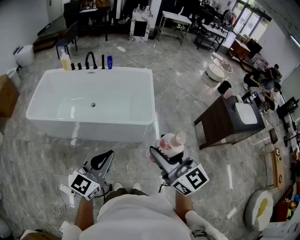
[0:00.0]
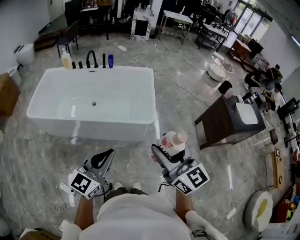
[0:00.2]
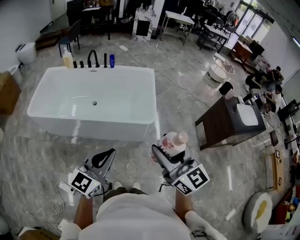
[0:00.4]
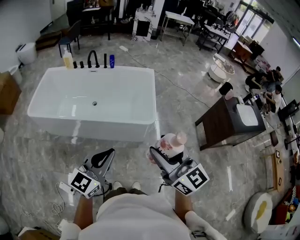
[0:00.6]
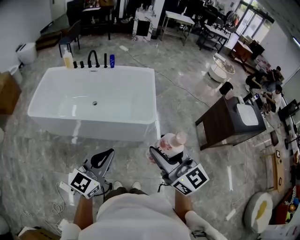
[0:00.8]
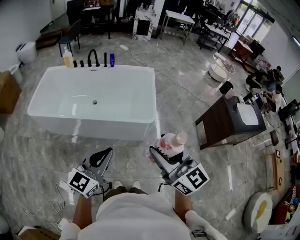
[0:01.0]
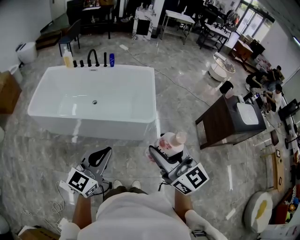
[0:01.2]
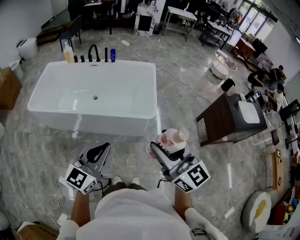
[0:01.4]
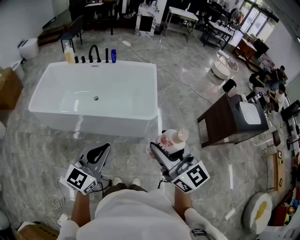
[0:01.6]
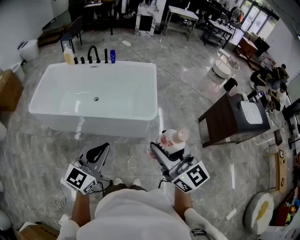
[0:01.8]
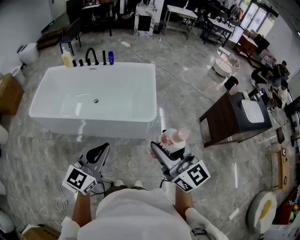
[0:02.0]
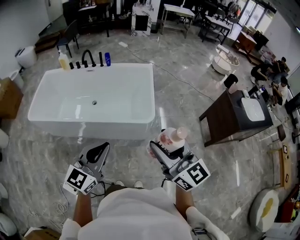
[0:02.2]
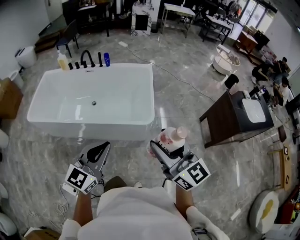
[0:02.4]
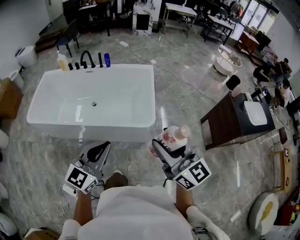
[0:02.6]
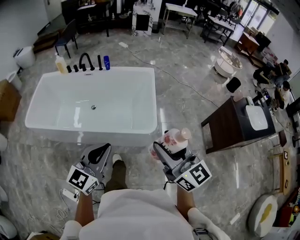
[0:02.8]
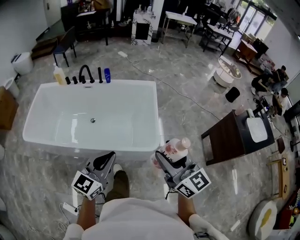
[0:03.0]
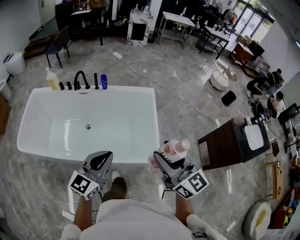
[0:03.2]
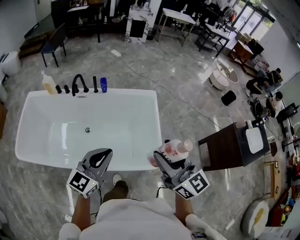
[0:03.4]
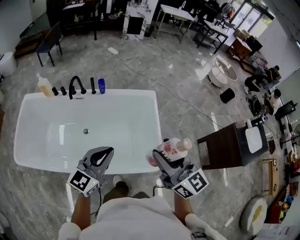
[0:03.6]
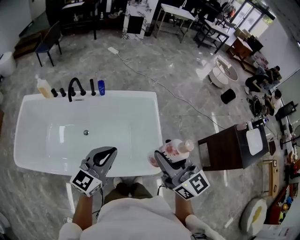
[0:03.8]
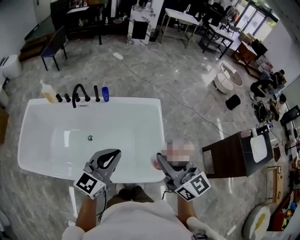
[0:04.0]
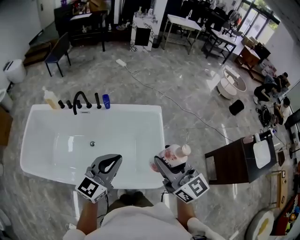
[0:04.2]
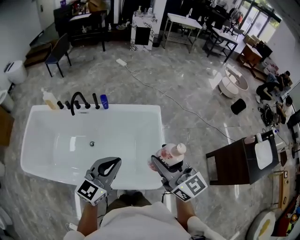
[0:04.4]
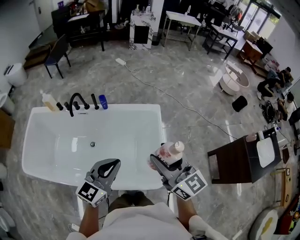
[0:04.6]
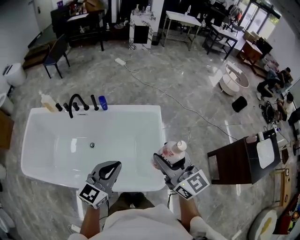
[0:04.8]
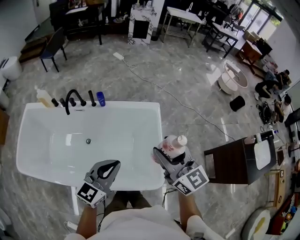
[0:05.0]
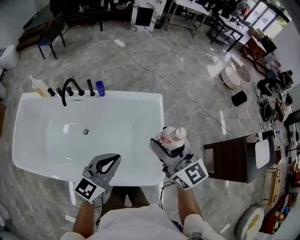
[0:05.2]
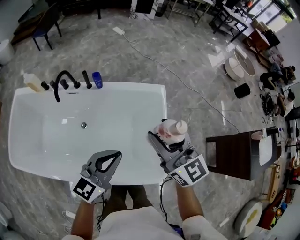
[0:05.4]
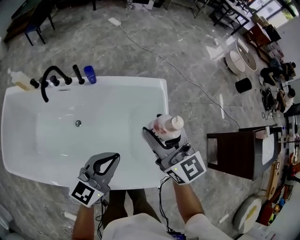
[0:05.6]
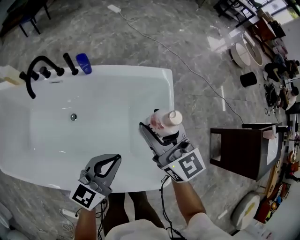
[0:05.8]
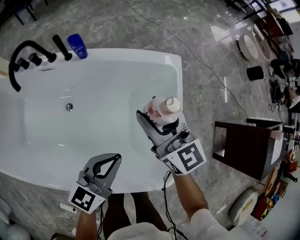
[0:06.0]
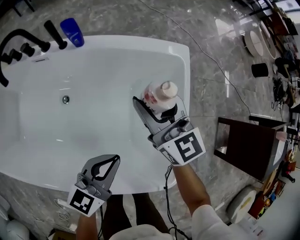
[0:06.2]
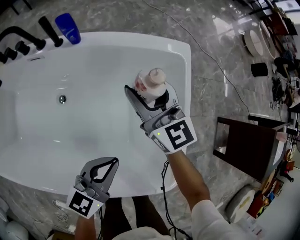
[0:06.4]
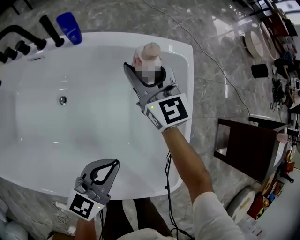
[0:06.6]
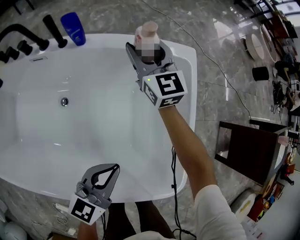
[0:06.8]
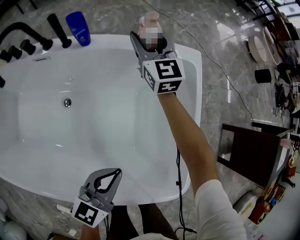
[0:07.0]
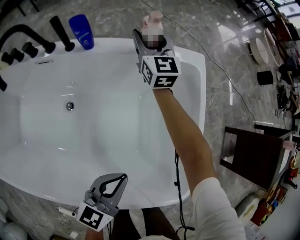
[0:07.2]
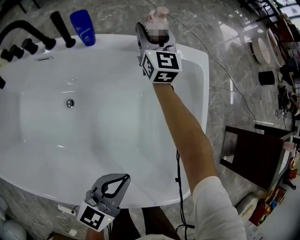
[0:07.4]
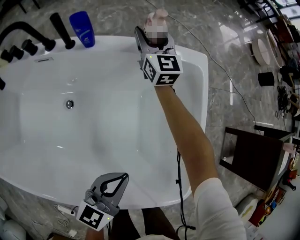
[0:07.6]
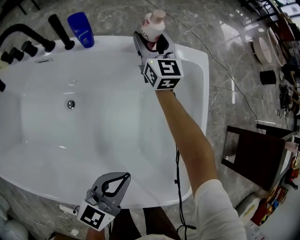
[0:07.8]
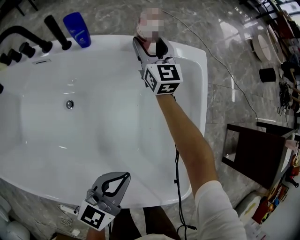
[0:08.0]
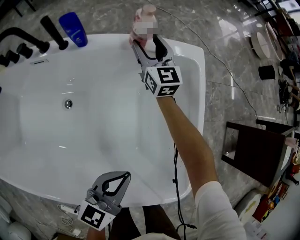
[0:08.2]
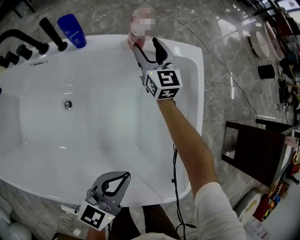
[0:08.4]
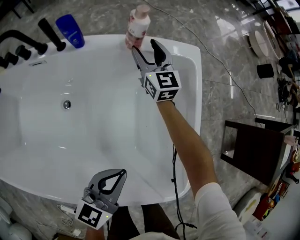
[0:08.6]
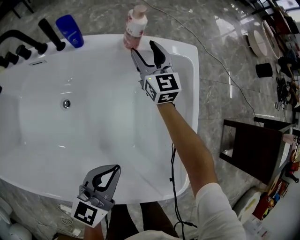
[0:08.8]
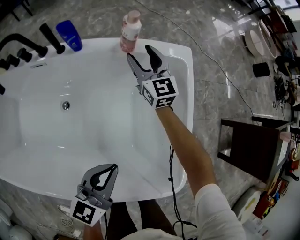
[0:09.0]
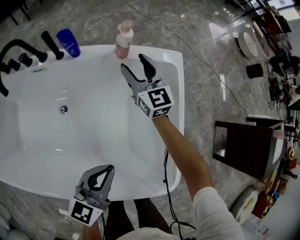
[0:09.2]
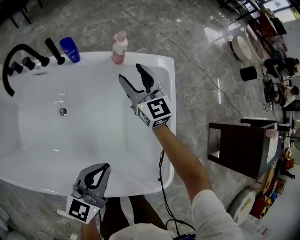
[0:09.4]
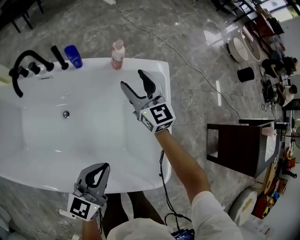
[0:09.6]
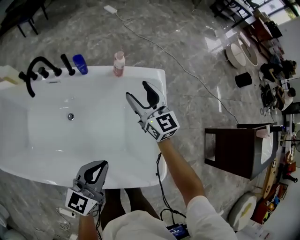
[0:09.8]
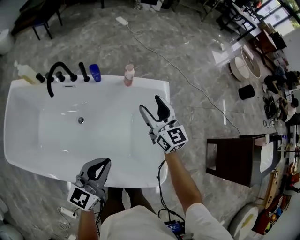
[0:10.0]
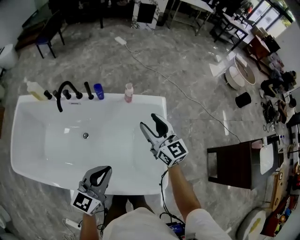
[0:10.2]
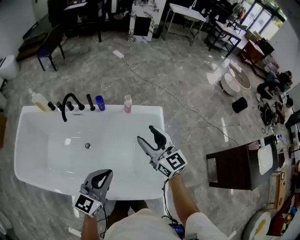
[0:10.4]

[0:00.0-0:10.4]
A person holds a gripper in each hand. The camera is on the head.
0:00.0 to 0:01.4: Both grippers stay put.
0:01.4 to 0:03.0: Both grippers move forward, about 25 cm.
0:03.0 to 0:04.4: The grippers both shift forward by about 30 cm.
0:04.4 to 0:06.0: The grippers both shift downward and forward by some 40 cm.
0:06.0 to 0:07.4: The right gripper is displaced forward and downward by some 30 cm. Meanwhile the left gripper is displaced downward by approximately 10 cm.
0:07.4 to 0:09.0: The right gripper is displaced backward and to the right by about 10 cm.
0:09.0 to 0:10.4: The right gripper shifts roughly 50 cm upward and backward. Meanwhile the left gripper heads upward, covering some 30 cm.

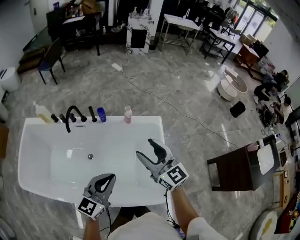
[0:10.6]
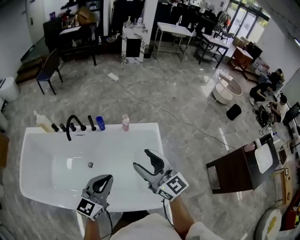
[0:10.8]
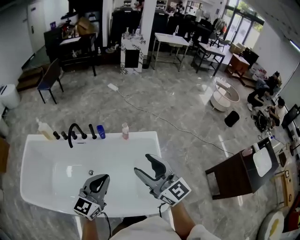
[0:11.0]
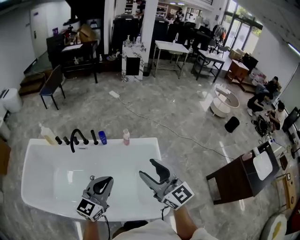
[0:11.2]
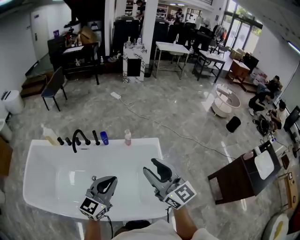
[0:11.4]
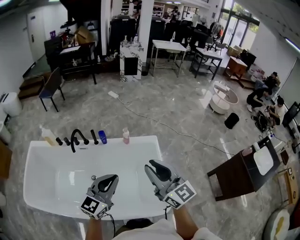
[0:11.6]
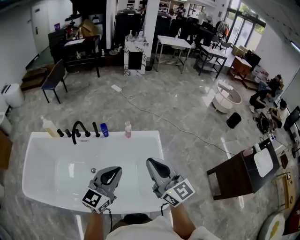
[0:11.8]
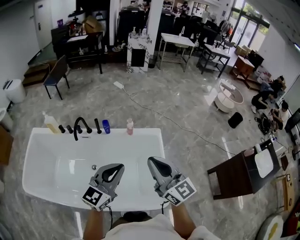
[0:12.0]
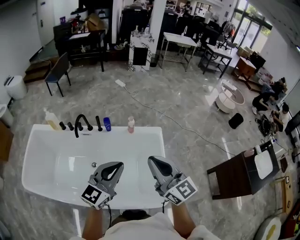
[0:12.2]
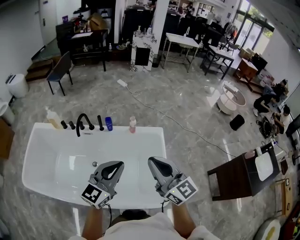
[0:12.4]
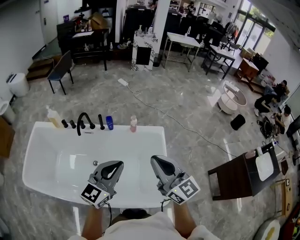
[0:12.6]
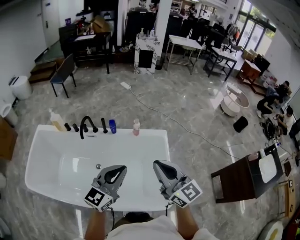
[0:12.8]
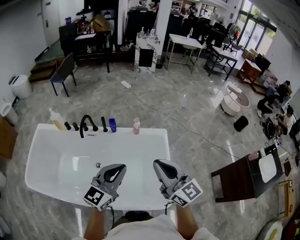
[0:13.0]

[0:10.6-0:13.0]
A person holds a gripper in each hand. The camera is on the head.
0:10.6 to 0:11.8: The left gripper travels upward by about 10 cm. Meanwhile the right gripper is displaced upward and backward by approximately 15 cm, and closes up.
0:11.8 to 0:13.0: There are only small adjustments of the grippers.

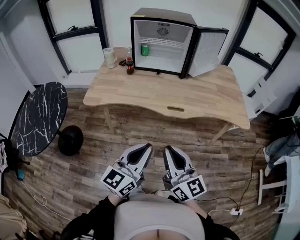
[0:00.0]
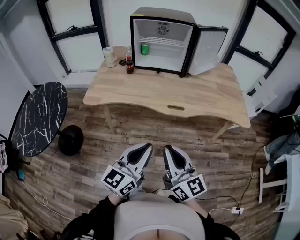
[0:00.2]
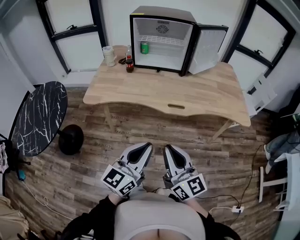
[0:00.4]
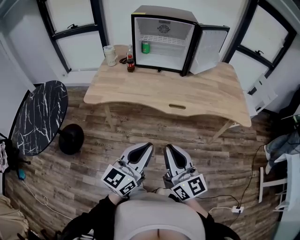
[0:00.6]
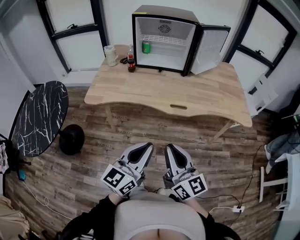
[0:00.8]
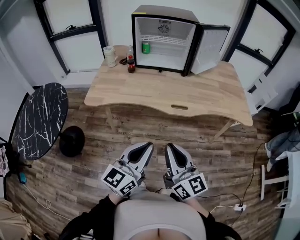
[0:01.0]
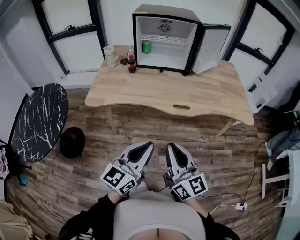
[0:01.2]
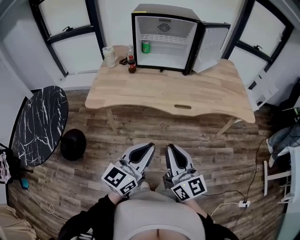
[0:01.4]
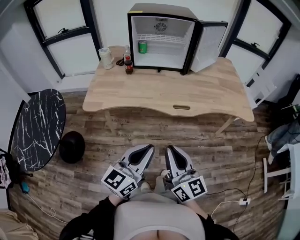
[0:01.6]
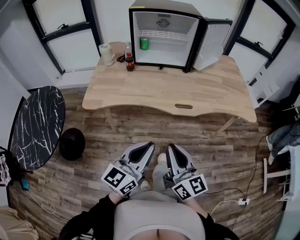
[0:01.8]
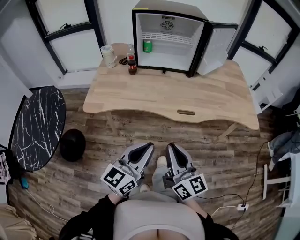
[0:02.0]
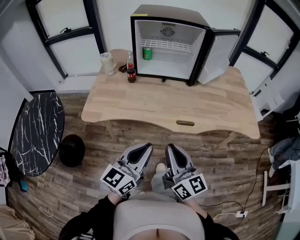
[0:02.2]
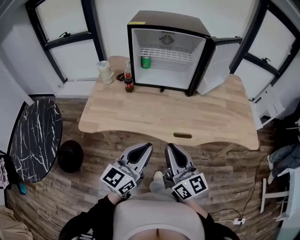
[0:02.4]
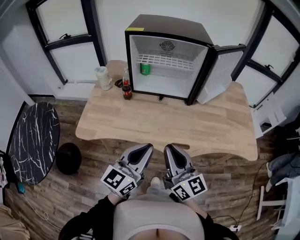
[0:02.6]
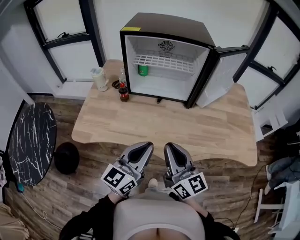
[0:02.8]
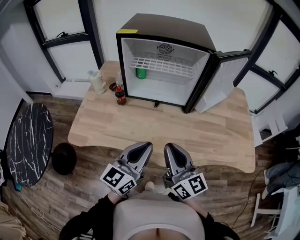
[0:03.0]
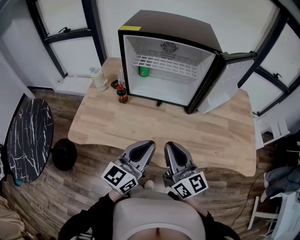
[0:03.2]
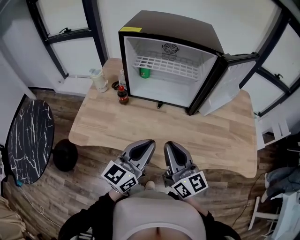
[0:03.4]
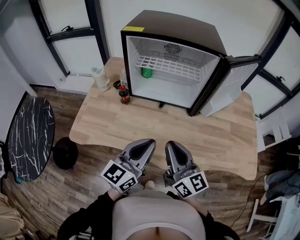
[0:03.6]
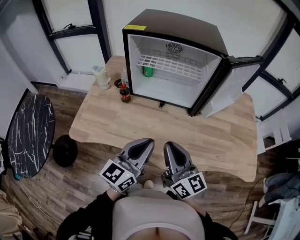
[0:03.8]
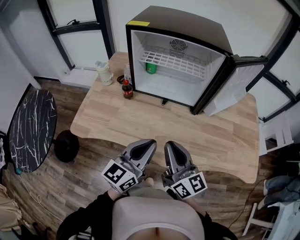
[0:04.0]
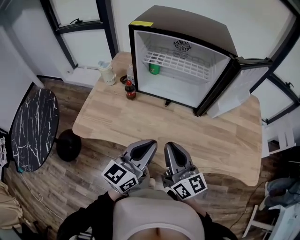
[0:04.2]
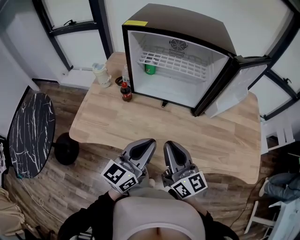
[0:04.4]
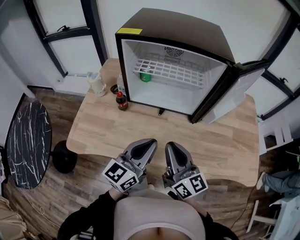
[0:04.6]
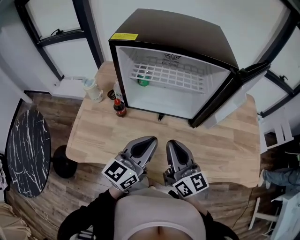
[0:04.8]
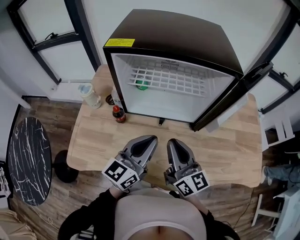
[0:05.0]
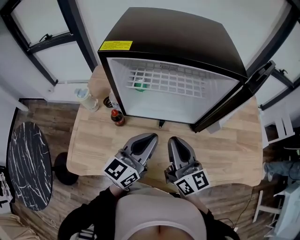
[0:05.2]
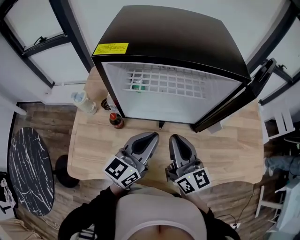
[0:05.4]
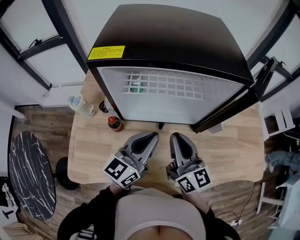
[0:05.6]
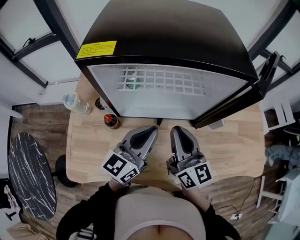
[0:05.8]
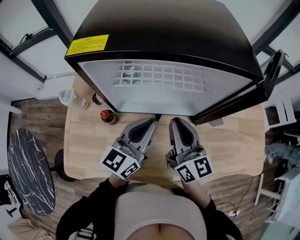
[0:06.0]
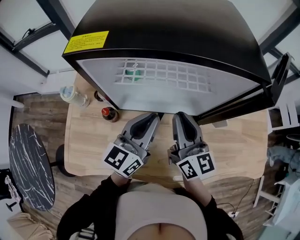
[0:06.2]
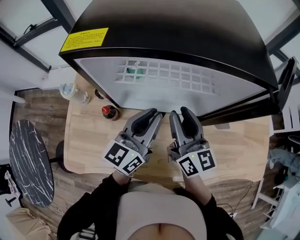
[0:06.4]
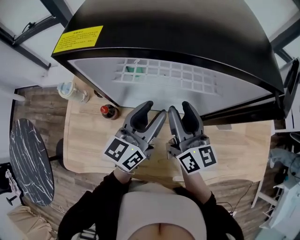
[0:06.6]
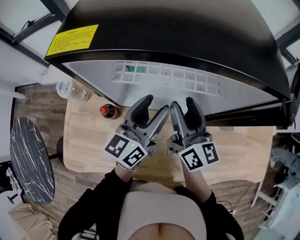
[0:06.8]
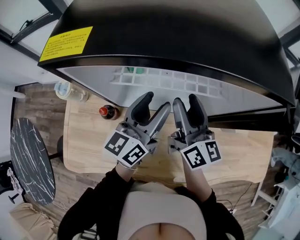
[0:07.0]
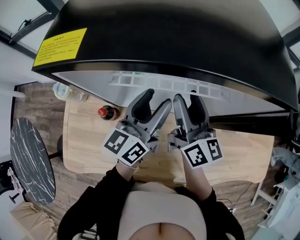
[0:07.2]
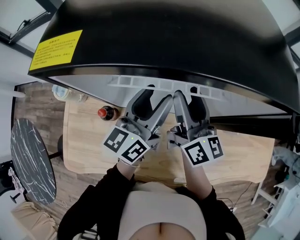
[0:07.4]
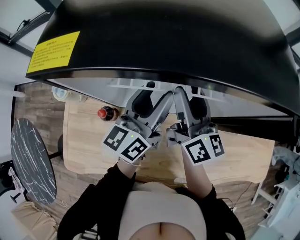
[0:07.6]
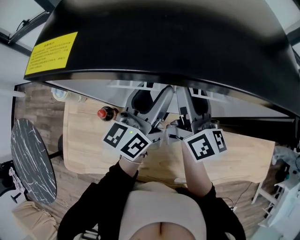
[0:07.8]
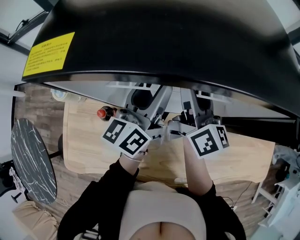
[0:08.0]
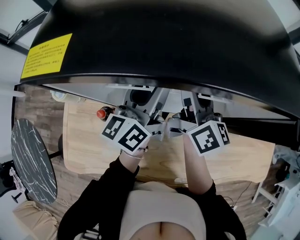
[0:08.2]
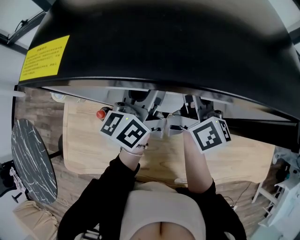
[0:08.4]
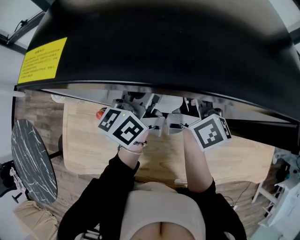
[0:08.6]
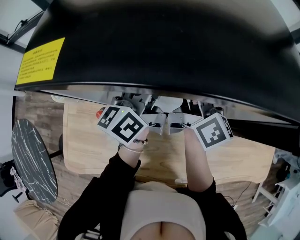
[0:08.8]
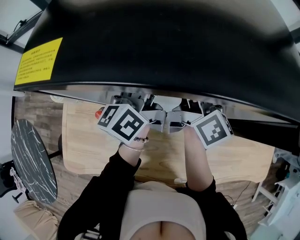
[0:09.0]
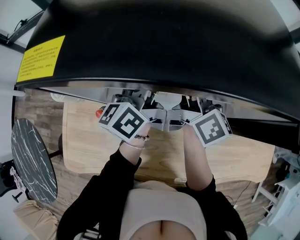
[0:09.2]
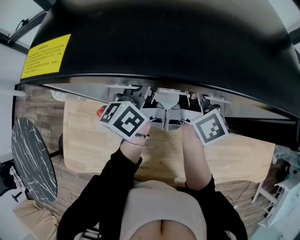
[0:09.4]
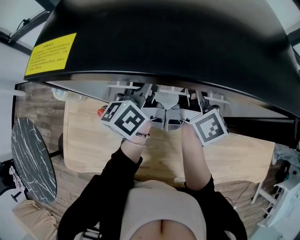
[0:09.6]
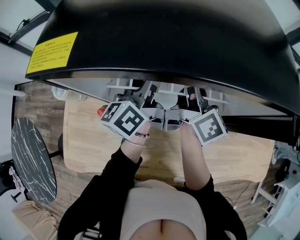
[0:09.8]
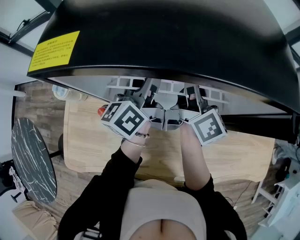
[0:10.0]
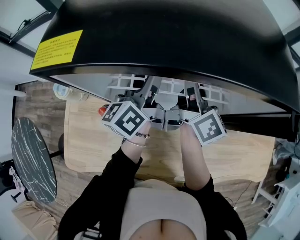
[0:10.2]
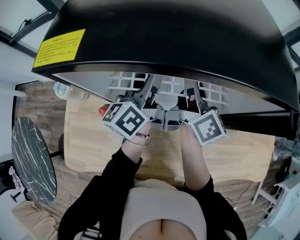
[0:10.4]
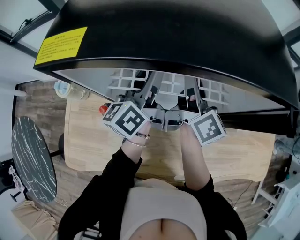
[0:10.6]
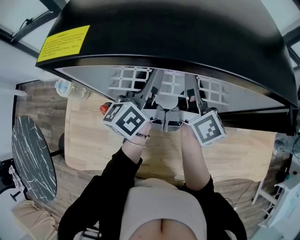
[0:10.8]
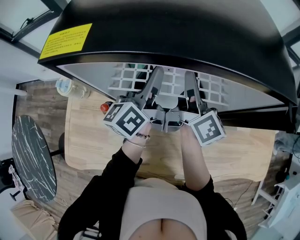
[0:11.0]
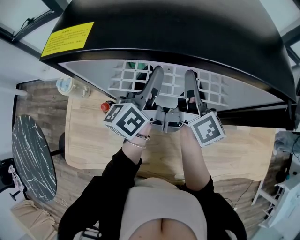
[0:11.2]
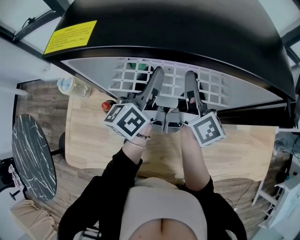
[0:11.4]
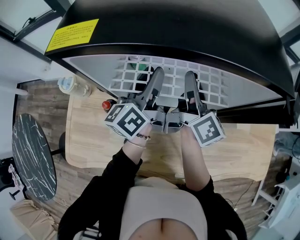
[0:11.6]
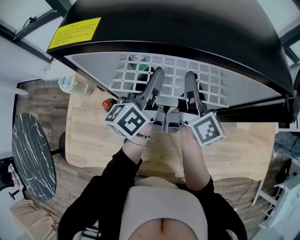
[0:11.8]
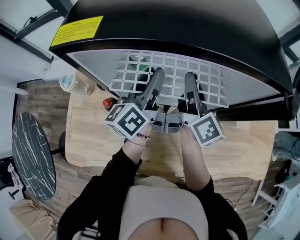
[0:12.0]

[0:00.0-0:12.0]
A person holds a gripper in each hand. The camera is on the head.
0:00.0 to 0:01.6: The two grippers go about 5 cm to the left.
0:01.6 to 0:03.0: The grippers both shift forward by about 30 cm.
0:03.0 to 0:04.4: Both grippers travel together forward, approximately 5 cm.
0:04.4 to 0:06.0: The two grippers go about 25 cm forward.
0:06.0 to 0:07.6: Both grippers travel together forward, approximately 10 cm. The left gripper opens its fingers. The right gripper opens its fingers.
0:07.6 to 0:09.0: The two grippers go some 5 cm forward.
0:09.0 to 0:10.4: The right gripper closes its fingers.
0:10.4 to 0:12.0: The grippers make only small movements.
